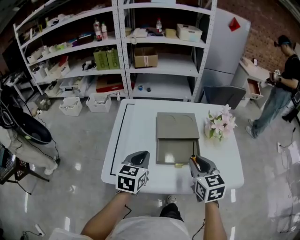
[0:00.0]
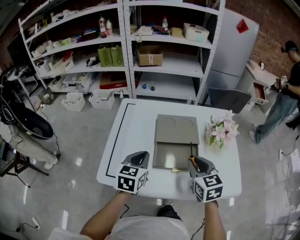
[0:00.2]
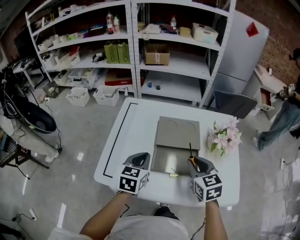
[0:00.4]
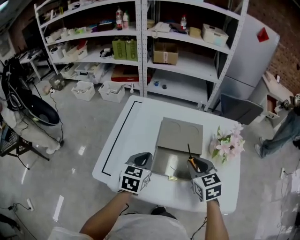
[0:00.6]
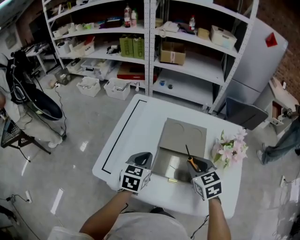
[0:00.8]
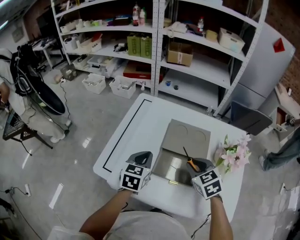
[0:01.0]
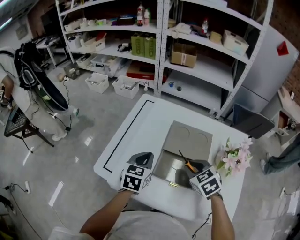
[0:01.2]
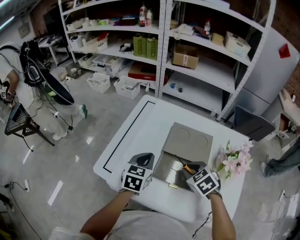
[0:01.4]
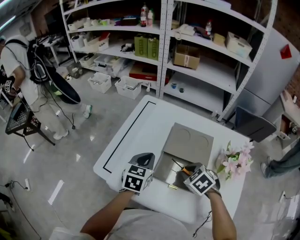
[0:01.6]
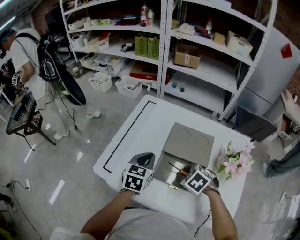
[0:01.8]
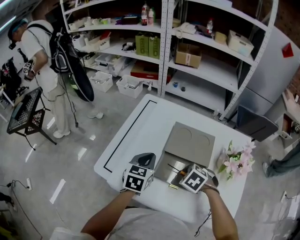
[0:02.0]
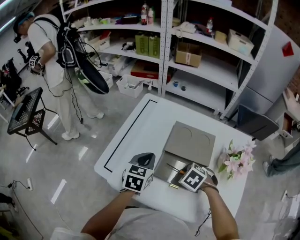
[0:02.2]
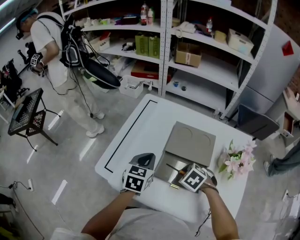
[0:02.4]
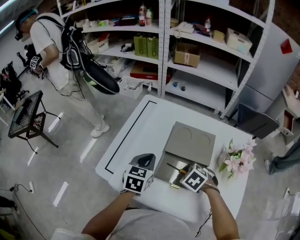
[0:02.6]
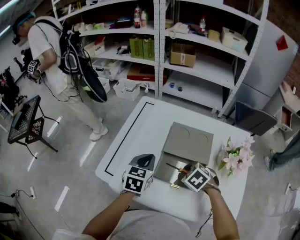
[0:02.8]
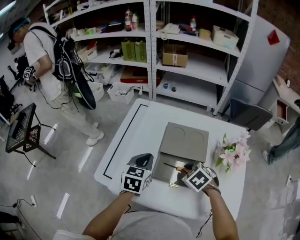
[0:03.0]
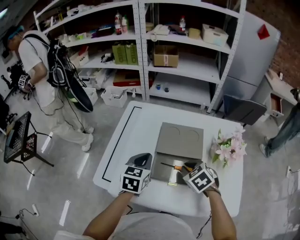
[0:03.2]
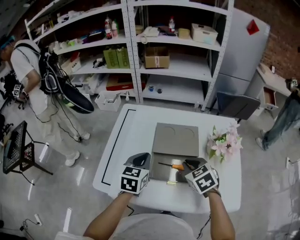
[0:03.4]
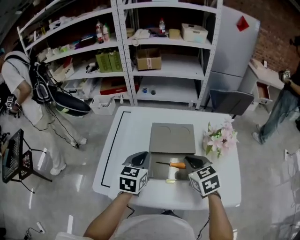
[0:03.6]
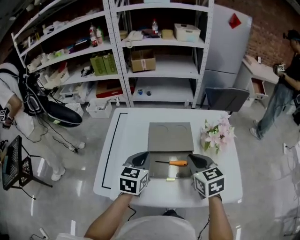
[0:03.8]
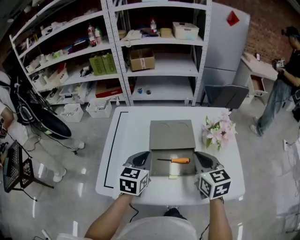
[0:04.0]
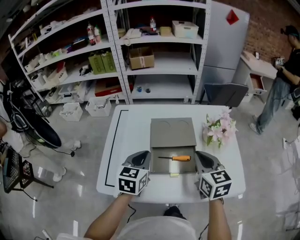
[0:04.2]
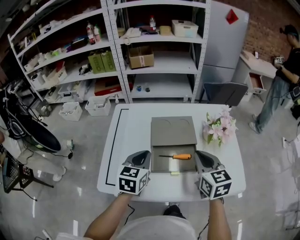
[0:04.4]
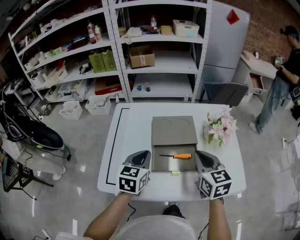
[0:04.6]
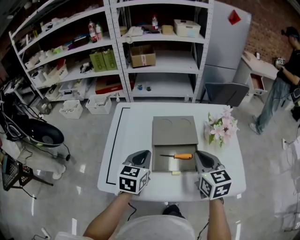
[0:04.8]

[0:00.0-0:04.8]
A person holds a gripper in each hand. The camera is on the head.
0:00.0 to 0:01.6: The right gripper moves downward, some 15 cm, and tilts its fingers roughly 40 degrees downward, while the left gripper changes place by some 10 cm.
0:01.6 to 0:03.2: The grippers stay close to where they were, moving slightly.
0:03.2 to 0:04.8: The right gripper goes about 15 cm upward, and tilts its fingers some 30 degrees upward.

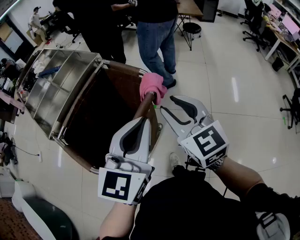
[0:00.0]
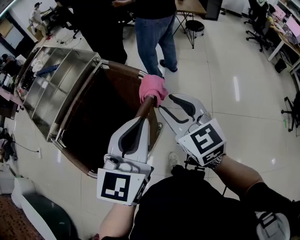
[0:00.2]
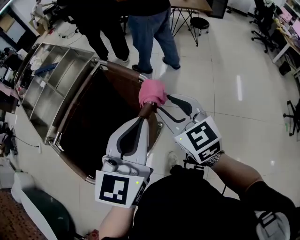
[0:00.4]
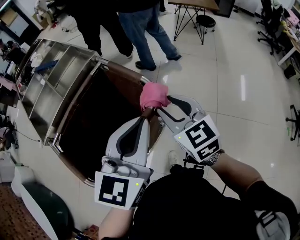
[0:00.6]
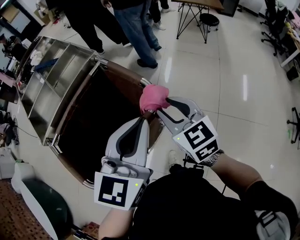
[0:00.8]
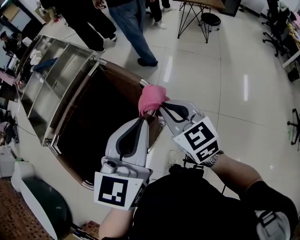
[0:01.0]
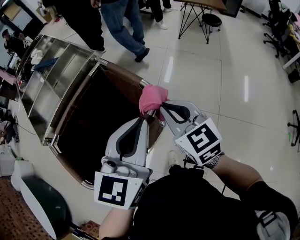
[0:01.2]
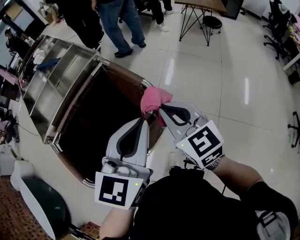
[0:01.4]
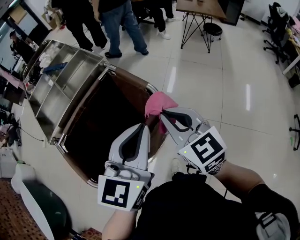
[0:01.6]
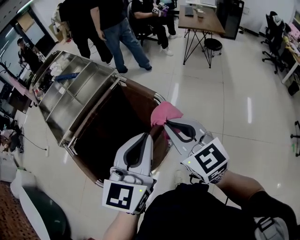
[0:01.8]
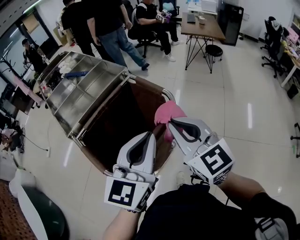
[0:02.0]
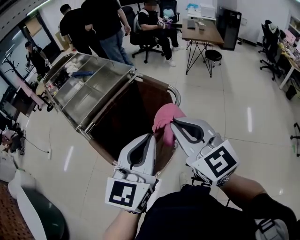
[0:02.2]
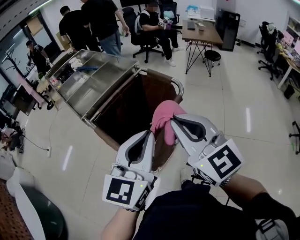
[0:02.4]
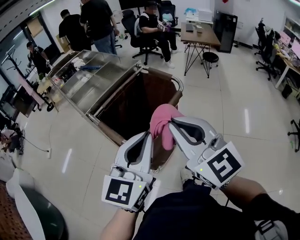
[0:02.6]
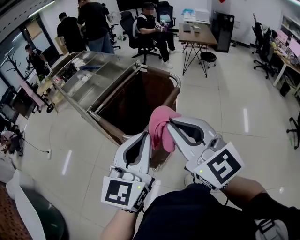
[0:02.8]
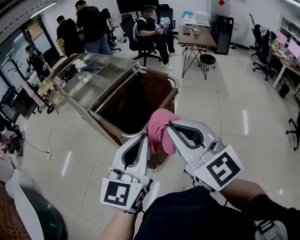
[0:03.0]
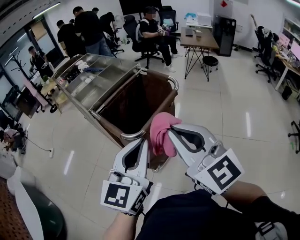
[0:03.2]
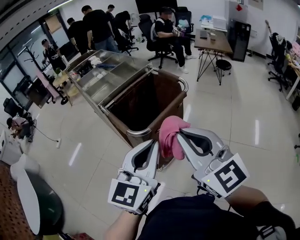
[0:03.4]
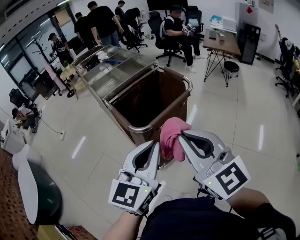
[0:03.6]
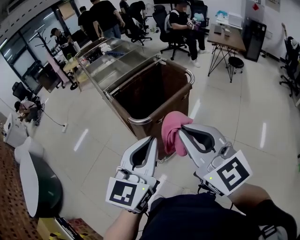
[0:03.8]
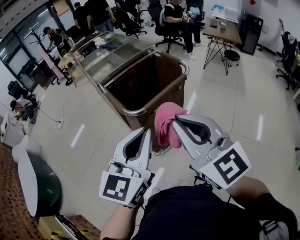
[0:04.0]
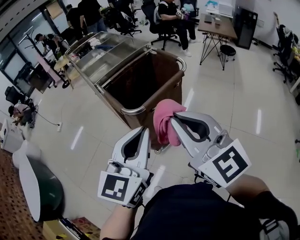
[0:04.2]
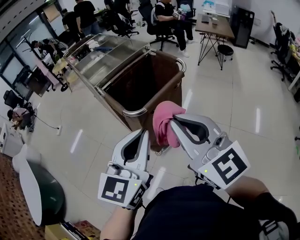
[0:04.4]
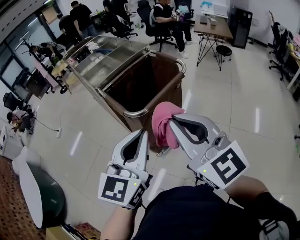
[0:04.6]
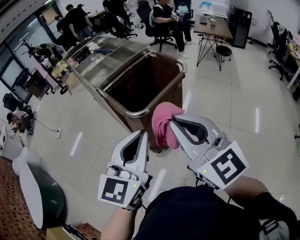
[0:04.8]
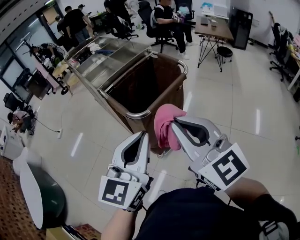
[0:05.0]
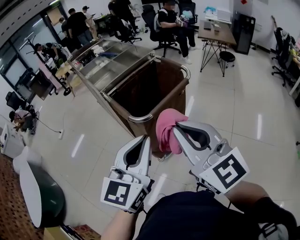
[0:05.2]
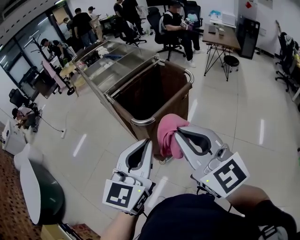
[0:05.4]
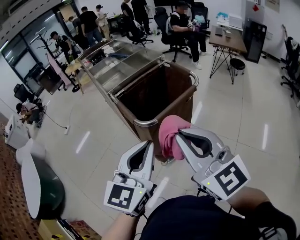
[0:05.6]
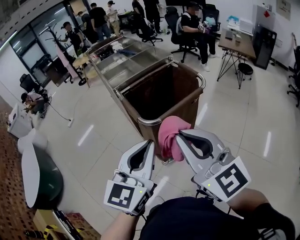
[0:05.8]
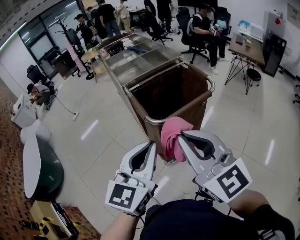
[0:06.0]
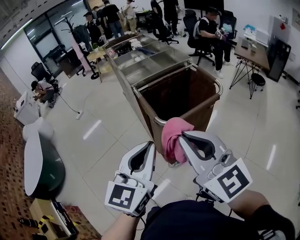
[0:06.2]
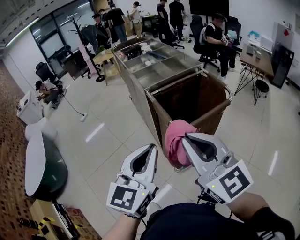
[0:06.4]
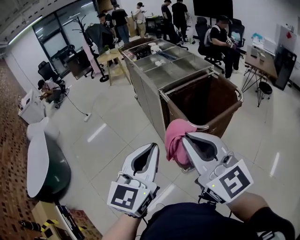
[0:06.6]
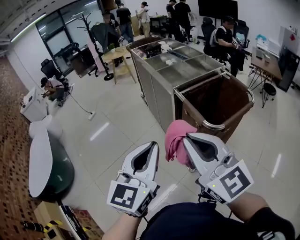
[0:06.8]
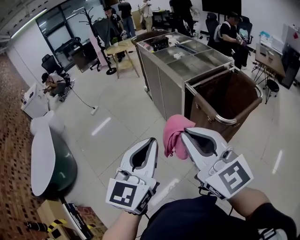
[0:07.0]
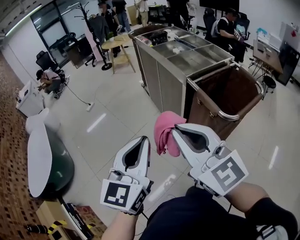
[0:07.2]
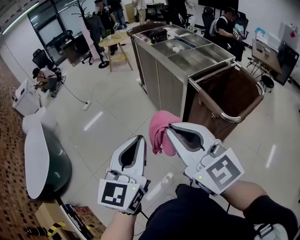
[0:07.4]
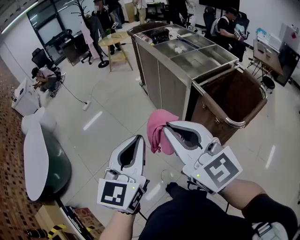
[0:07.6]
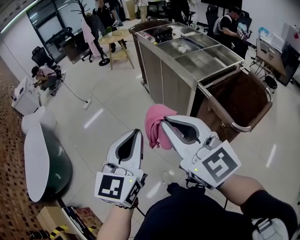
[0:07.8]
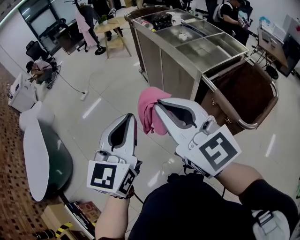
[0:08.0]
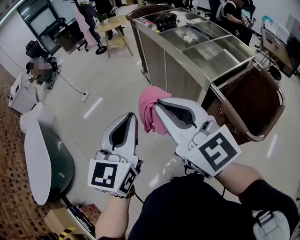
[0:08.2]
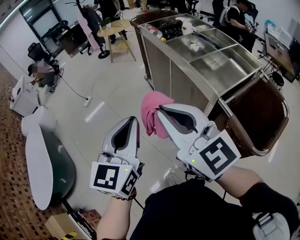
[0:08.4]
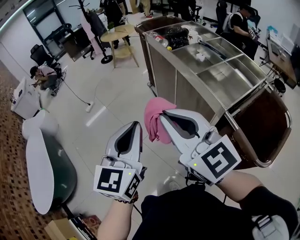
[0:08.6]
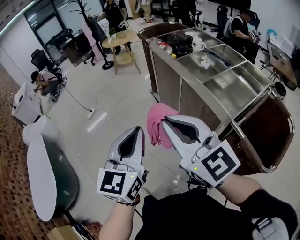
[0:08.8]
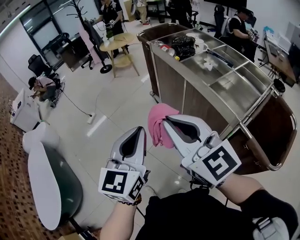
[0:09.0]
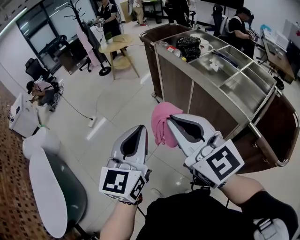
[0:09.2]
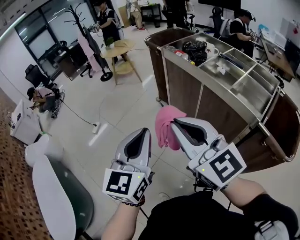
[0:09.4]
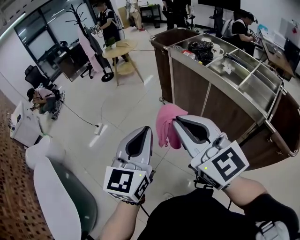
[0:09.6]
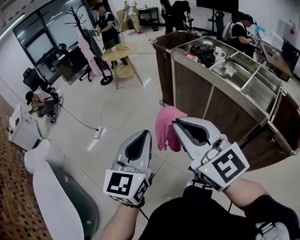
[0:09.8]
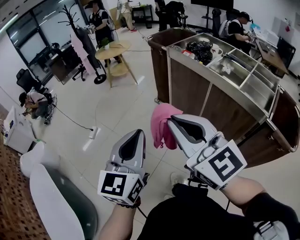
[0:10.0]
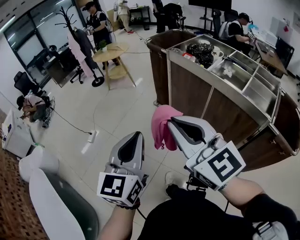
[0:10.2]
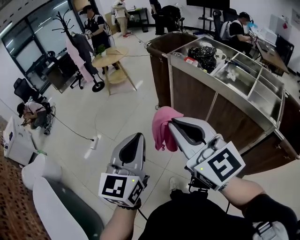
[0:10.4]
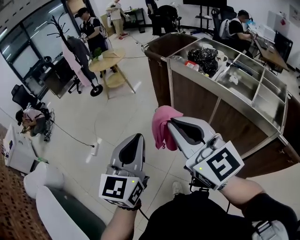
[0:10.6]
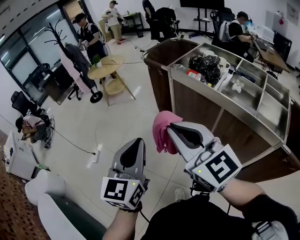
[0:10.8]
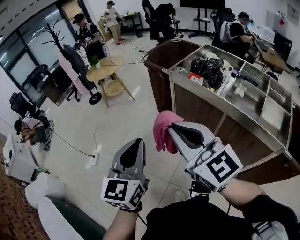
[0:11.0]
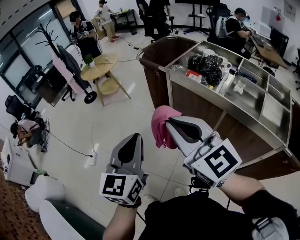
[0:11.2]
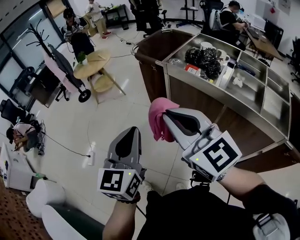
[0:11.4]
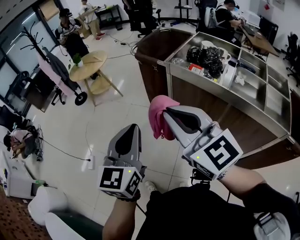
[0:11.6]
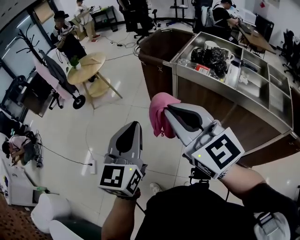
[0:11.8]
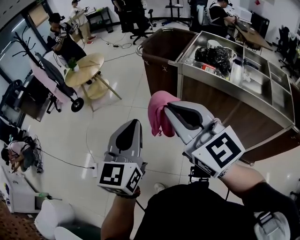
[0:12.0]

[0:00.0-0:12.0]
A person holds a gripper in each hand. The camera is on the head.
0:00.0 to 0:01.6: Both grippers travel together forward, roughly 10 cm. The right gripper closes its fingers.
0:01.6 to 0:03.0: The left gripper heads backward, to the left and upward, covering roughly 40 cm. Meanwhile the right gripper is displaced backward and upward by approximately 50 cm, and swivels roughly 20 degrees.
0:03.0 to 0:04.4: The right gripper ends up roughly 5 cm from where it was.
0:04.4 to 0:06.0: The grippers make only small movements.
0:06.0 to 0:07.6: The grippers both shift to the left and forward by approximately 40 cm.
0:07.6 to 0:09.0: Both grippers travel together forward, some 35 cm.
0:09.0 to 0:10.4: Both grippers move to the left and forward, approximately 30 cm.
0:10.4 to 0:12.0: The two grippers go roughly 35 cm forward and to the left.

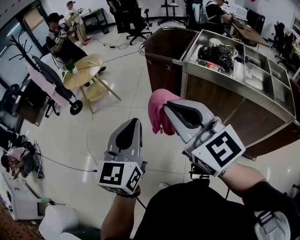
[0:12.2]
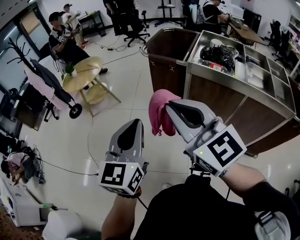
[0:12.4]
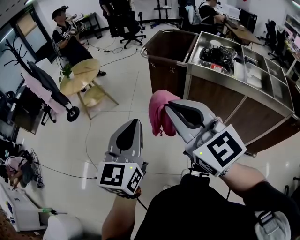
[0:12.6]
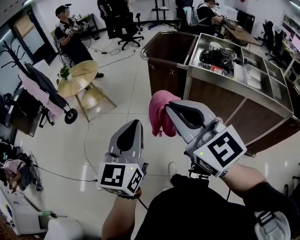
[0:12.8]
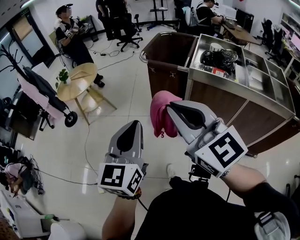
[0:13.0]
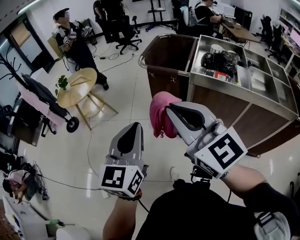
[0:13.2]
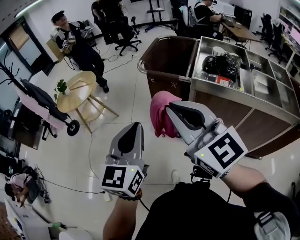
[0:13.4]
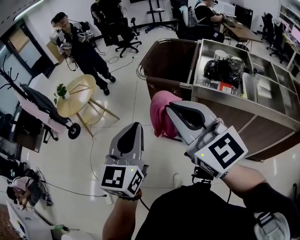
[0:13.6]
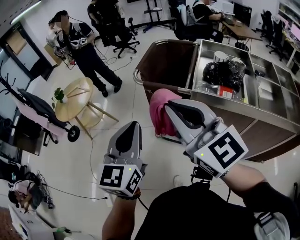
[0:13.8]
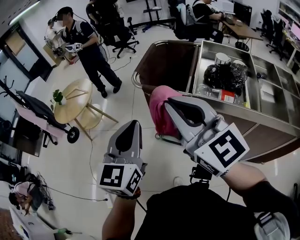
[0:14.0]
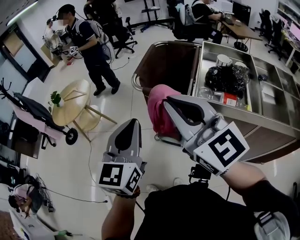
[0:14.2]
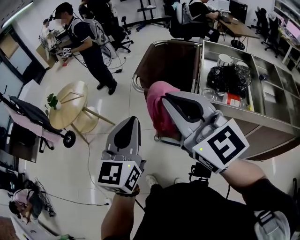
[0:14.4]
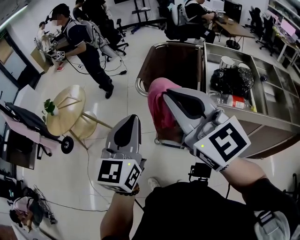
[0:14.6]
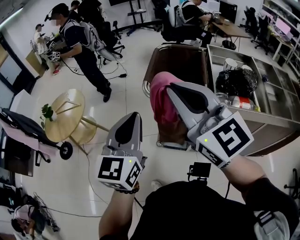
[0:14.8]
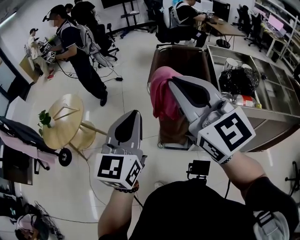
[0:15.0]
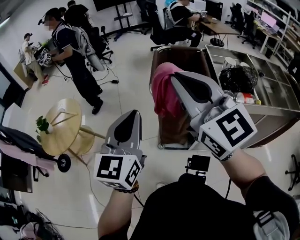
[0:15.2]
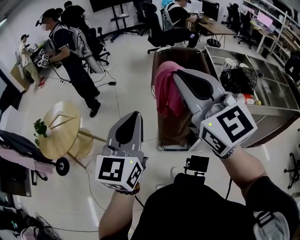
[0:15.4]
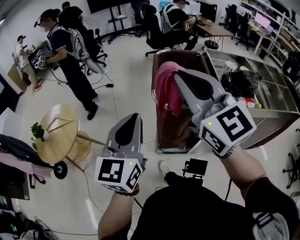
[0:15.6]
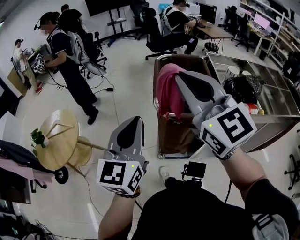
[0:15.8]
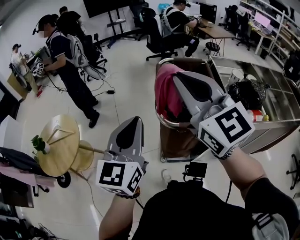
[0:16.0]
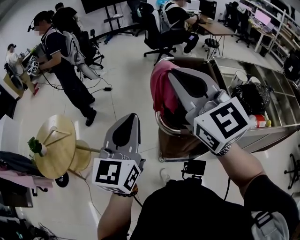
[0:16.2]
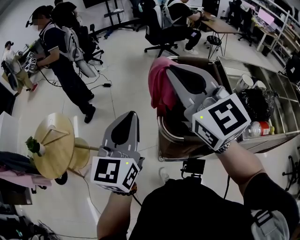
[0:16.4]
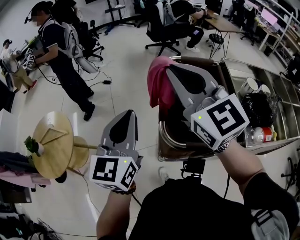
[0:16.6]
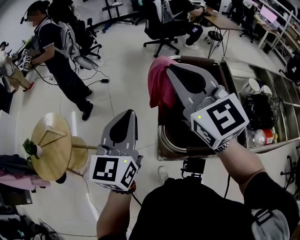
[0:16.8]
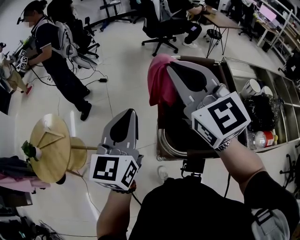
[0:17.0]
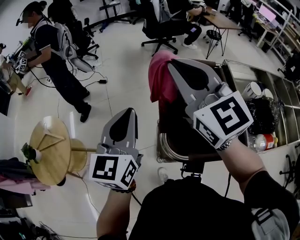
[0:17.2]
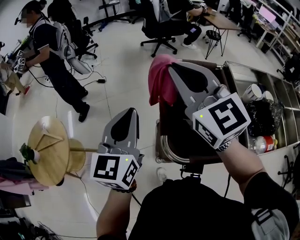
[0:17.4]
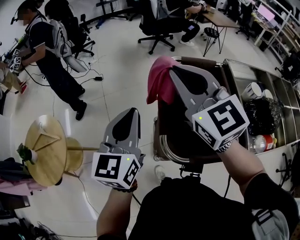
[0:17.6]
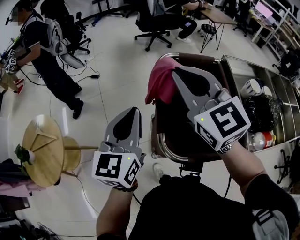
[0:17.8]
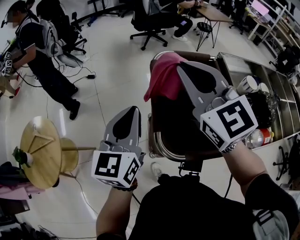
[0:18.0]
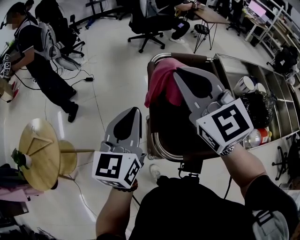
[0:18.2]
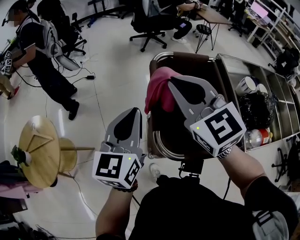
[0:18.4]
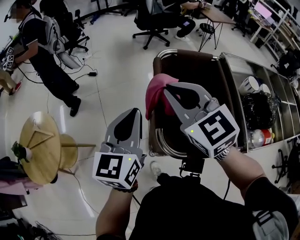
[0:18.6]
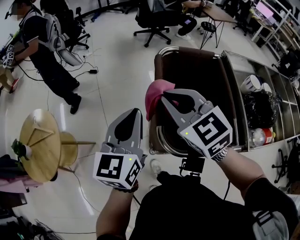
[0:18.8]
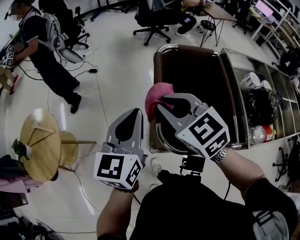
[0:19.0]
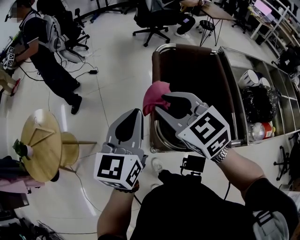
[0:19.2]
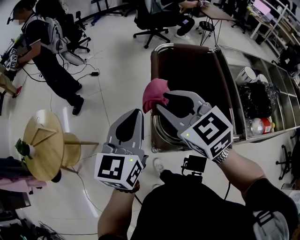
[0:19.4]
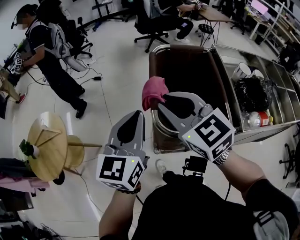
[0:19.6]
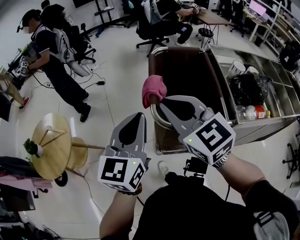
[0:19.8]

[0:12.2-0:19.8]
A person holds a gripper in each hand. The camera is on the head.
0:12.2 to 0:13.8: Both grippers travel together forward, about 20 cm.
0:13.8 to 0:15.2: The left gripper heads forward and to the left, covering some 30 cm, while the right gripper moves forward, to the left and upward, about 30 cm.
0:15.2 to 0:16.8: Both grippers travel together forward, approximately 35 cm.
0:16.8 to 0:18.2: Both grippers move forward, roughly 10 cm.
0:18.2 to 0:19.8: Both grippers move backward, some 20 cm. The right gripper opens and closes again.
